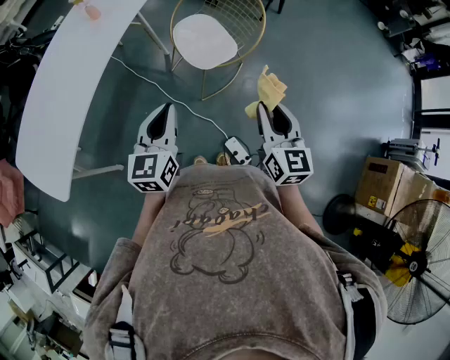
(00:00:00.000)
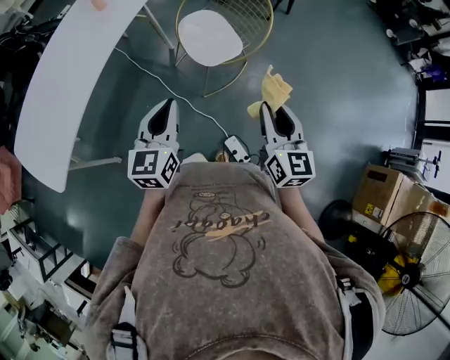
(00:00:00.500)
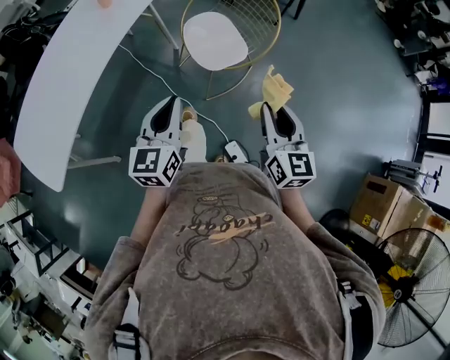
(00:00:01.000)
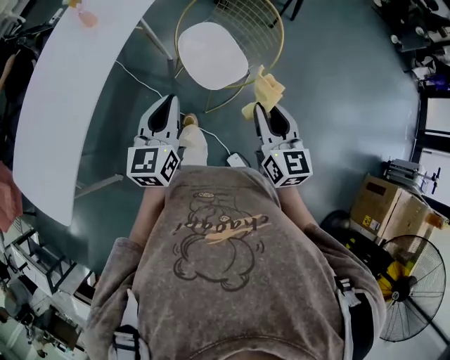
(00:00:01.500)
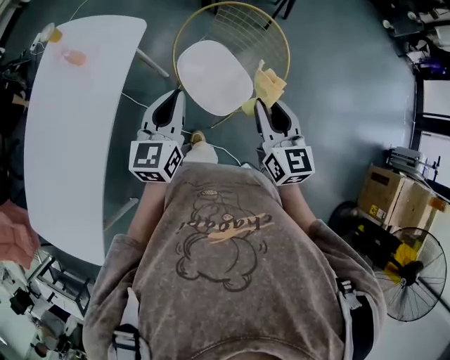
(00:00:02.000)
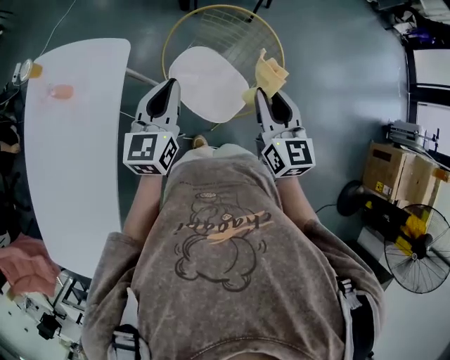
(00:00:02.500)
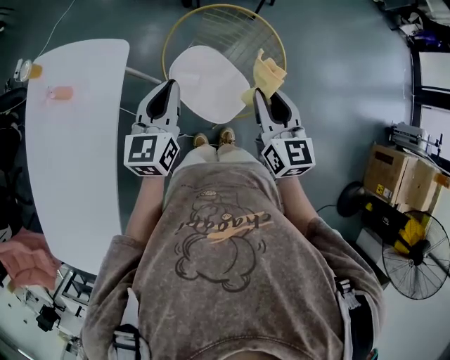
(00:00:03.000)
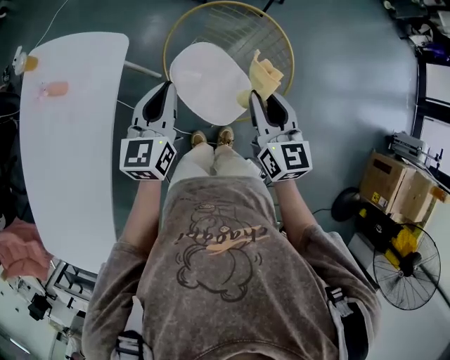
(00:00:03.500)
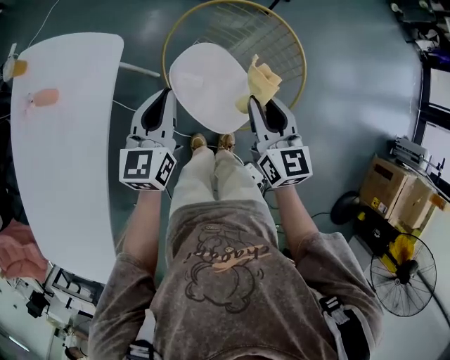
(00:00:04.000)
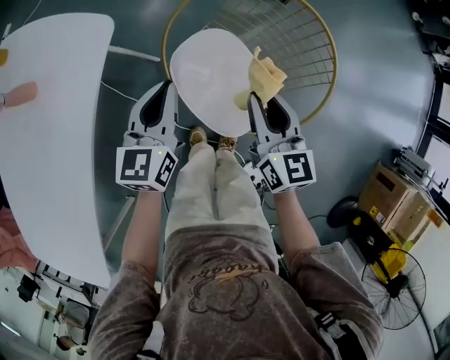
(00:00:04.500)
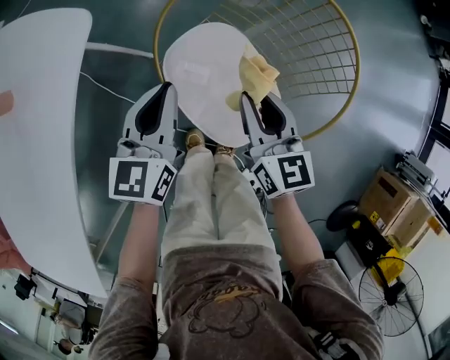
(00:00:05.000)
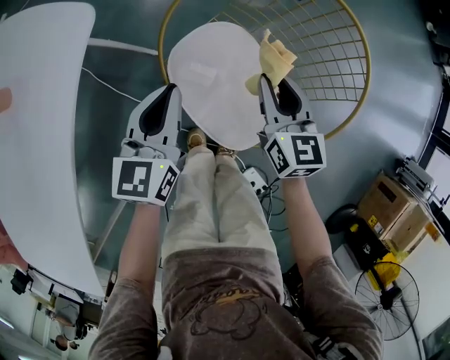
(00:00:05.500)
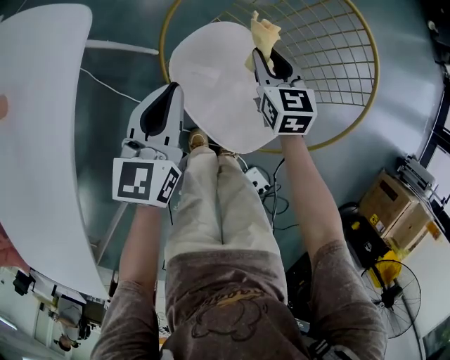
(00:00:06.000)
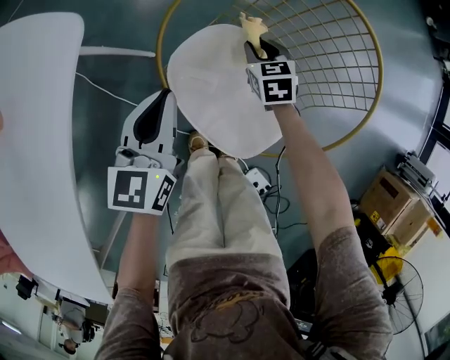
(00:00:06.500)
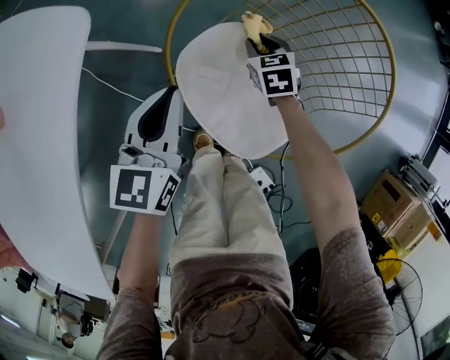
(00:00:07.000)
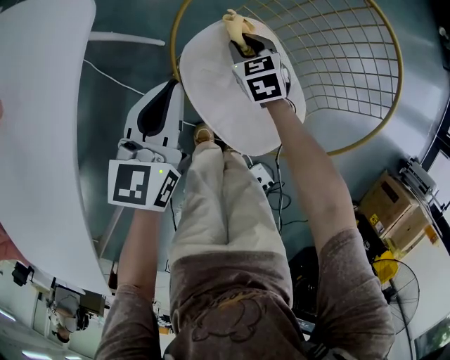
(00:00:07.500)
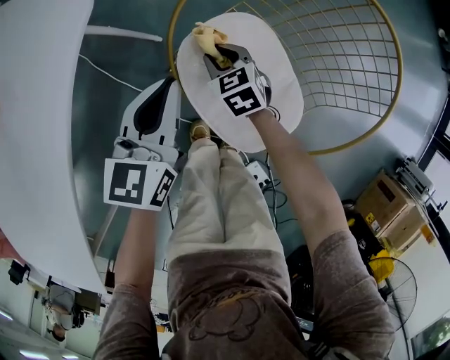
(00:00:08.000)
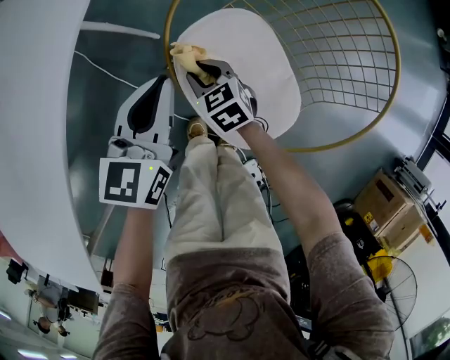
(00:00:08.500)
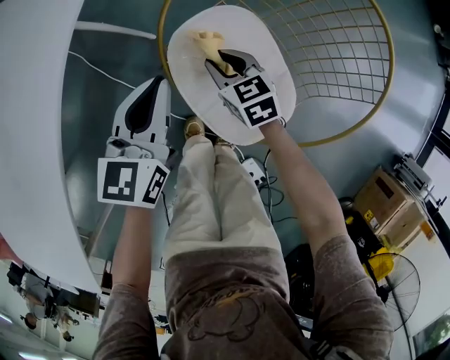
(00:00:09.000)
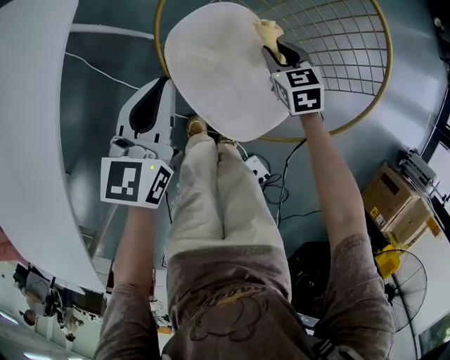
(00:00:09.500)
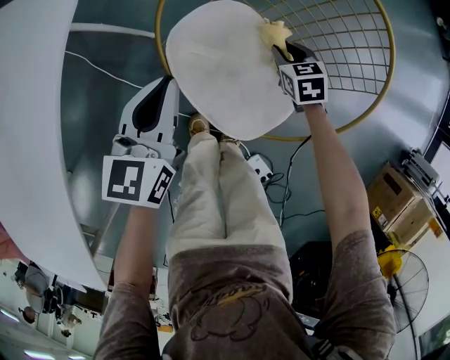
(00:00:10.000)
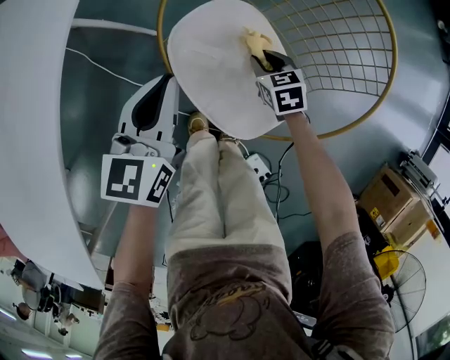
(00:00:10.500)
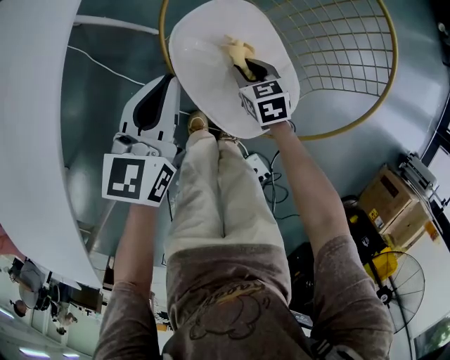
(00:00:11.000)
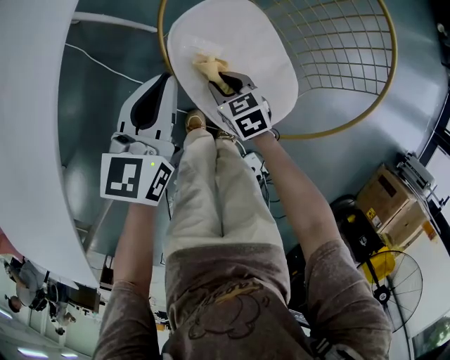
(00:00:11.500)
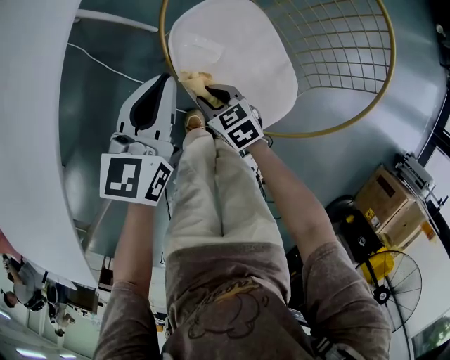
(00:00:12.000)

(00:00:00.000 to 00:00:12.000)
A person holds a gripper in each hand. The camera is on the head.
00:00:00.000 - 00:00:02.000: The grippers both shift forward by about 30 cm.
00:00:02.000 - 00:00:04.000: The grippers both shift forward and downward by about 15 cm.
00:00:04.000 - 00:00:06.000: The right gripper moves downward and forward, about 30 cm, while the left gripper goes roughly 15 cm downward.
00:00:06.000 - 00:00:08.000: The right gripper shifts some 20 cm to the left and downward, and turns by some 30 degrees.
00:00:08.000 - 00:00:10.000: The left gripper shifts by roughly 5 cm, while the right gripper shifts approximately 20 cm to the right.
00:00:10.000 - 00:00:12.000: The right gripper heads to the left and backward, covering roughly 25 cm, and swivels about 30 degrees.

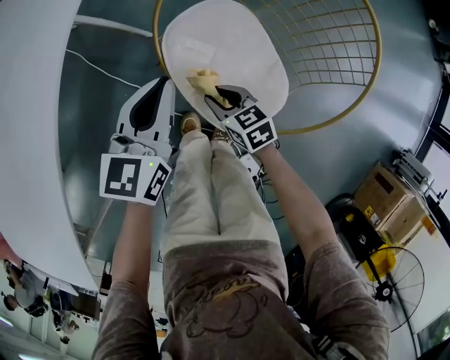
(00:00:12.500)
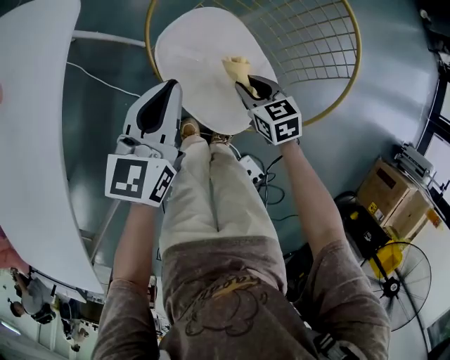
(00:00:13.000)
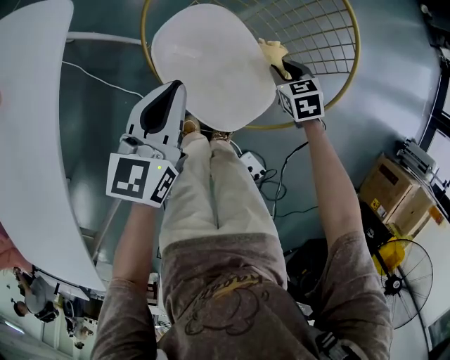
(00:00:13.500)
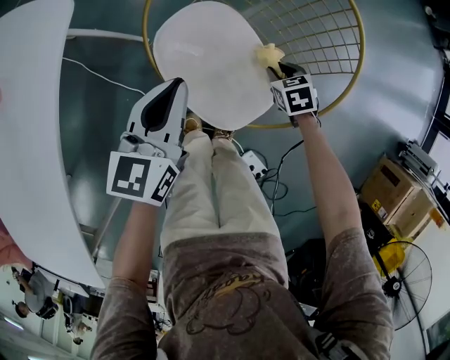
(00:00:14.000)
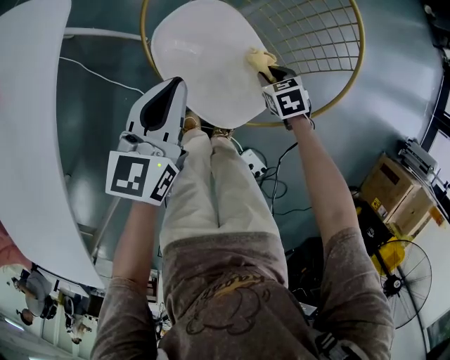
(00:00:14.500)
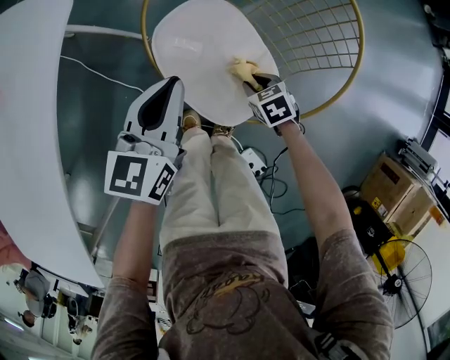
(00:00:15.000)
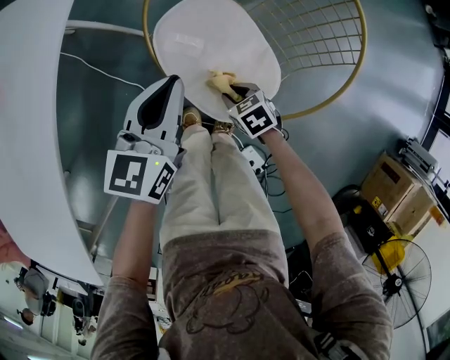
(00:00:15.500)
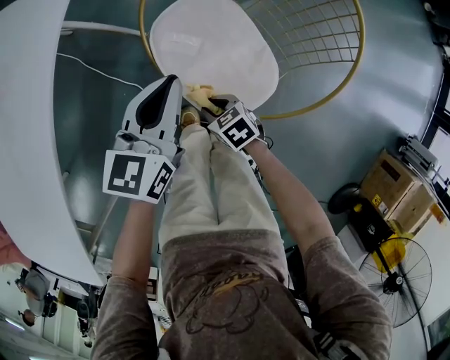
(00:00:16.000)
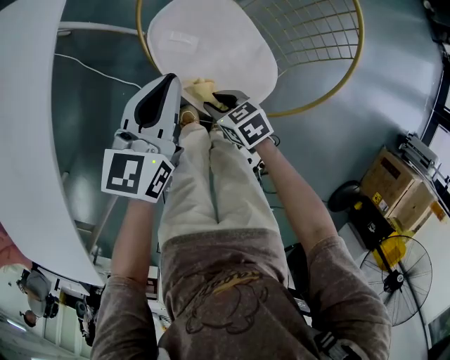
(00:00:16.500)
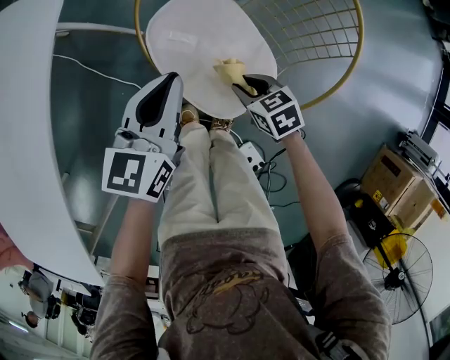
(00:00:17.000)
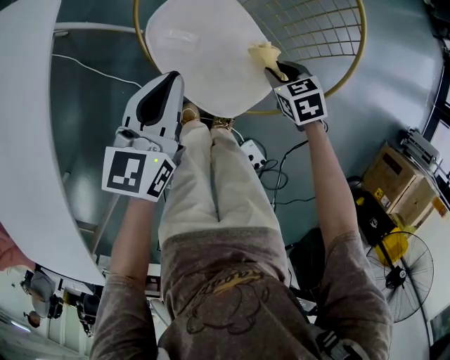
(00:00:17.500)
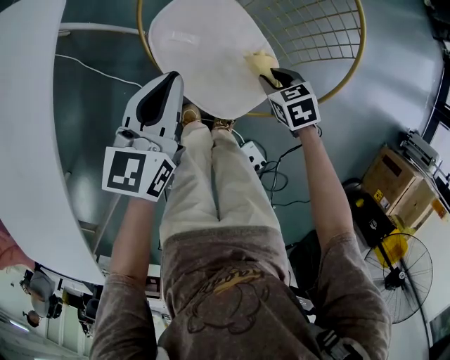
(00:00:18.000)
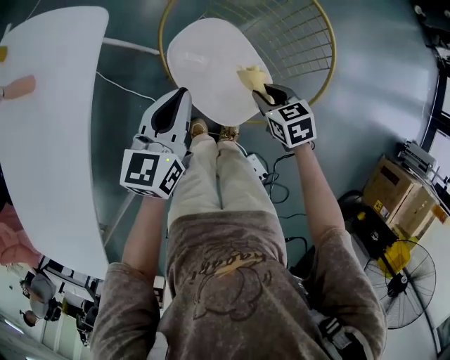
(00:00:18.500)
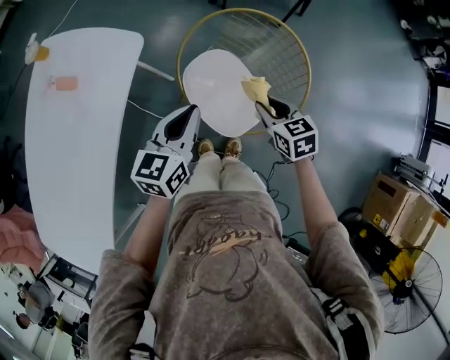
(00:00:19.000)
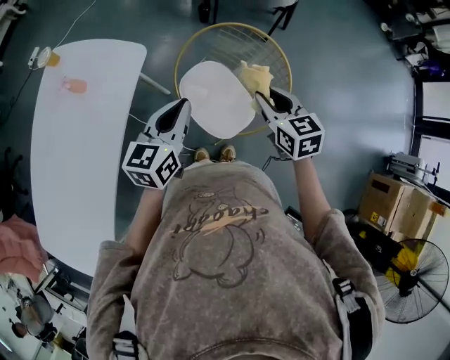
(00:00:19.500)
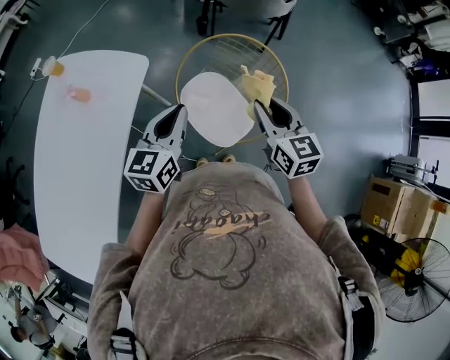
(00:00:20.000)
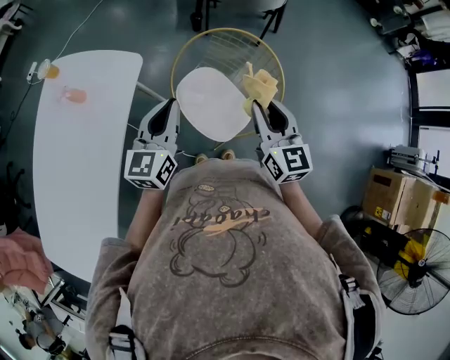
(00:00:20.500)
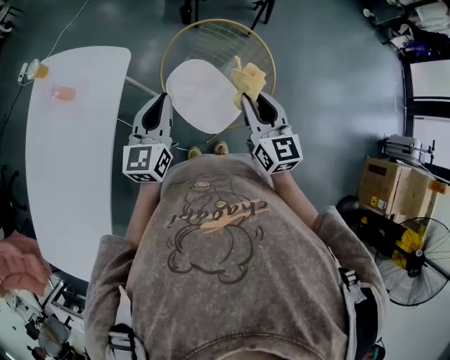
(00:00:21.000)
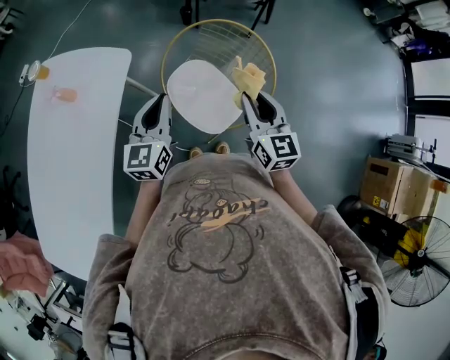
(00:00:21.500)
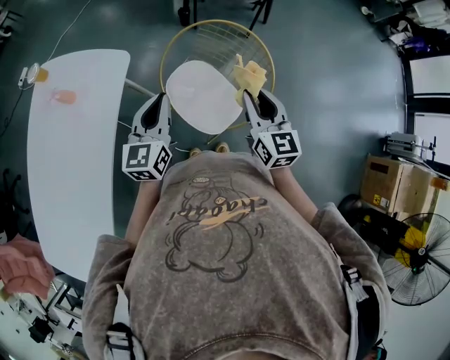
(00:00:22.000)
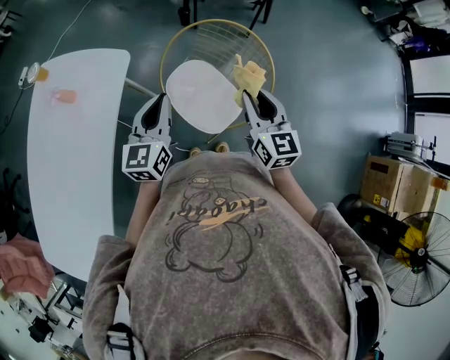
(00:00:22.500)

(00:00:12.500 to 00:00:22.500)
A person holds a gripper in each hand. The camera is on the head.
00:00:12.500 - 00:00:14.500: The right gripper goes some 20 cm to the right, and swivels approximately 30 degrees, while the left gripper shifts some 5 cm to the right.
00:00:14.500 - 00:00:16.500: The right gripper travels to the left by approximately 20 cm, and rotates some 20 degrees.
00:00:16.500 - 00:00:18.500: The left gripper heads upward, covering approximately 10 cm. The right gripper travels upward and to the right by roughly 20 cm.
00:00:18.500 - 00:00:20.500: The right gripper shifts some 35 cm upward, and tips its fingers upward by roughly 50 degrees, while the left gripper is displaced upward by approximately 20 cm.
00:00:20.500 - 00:00:22.500: There are only small adjustments of the grippers.

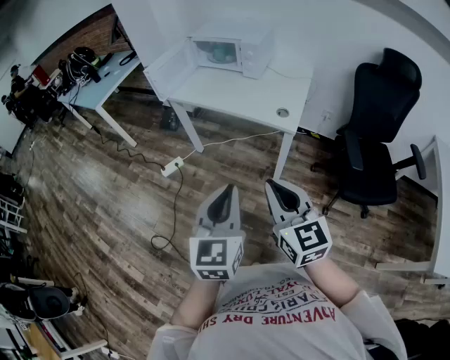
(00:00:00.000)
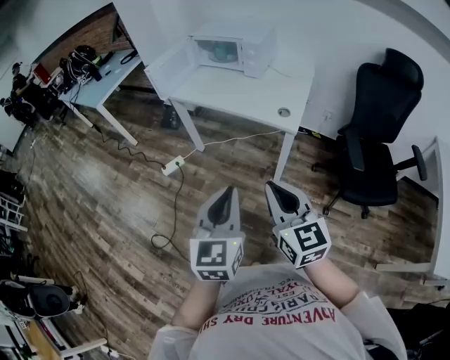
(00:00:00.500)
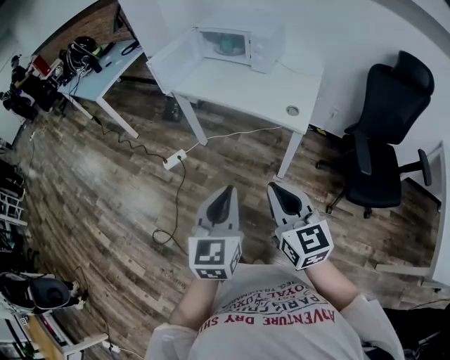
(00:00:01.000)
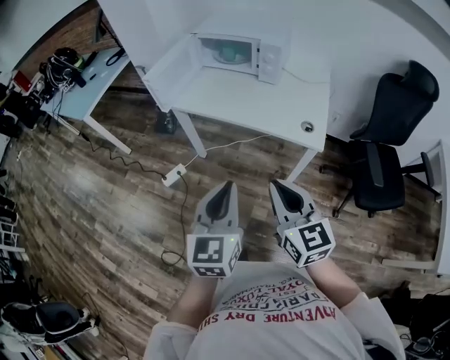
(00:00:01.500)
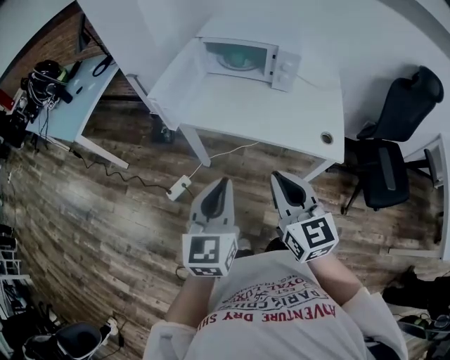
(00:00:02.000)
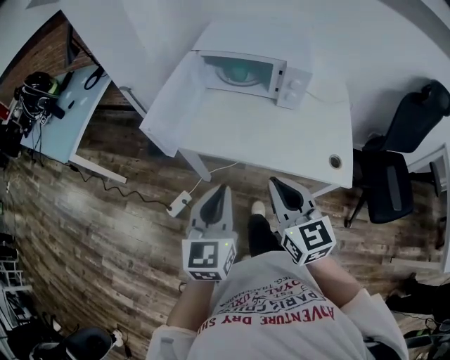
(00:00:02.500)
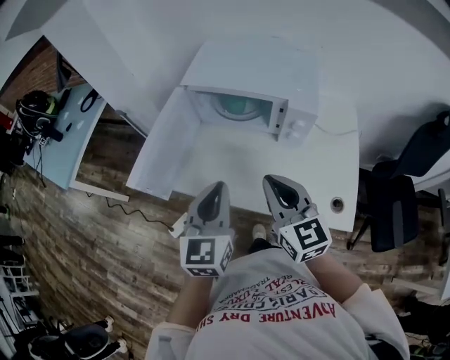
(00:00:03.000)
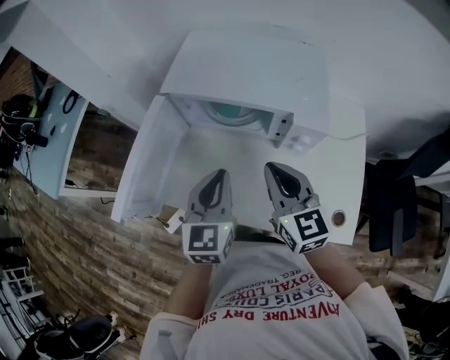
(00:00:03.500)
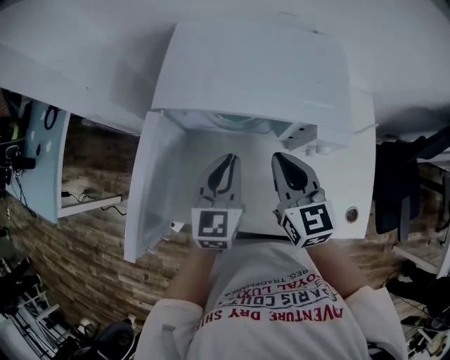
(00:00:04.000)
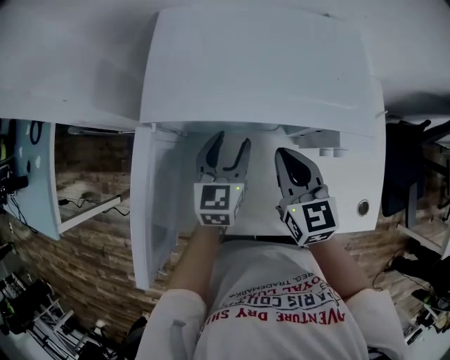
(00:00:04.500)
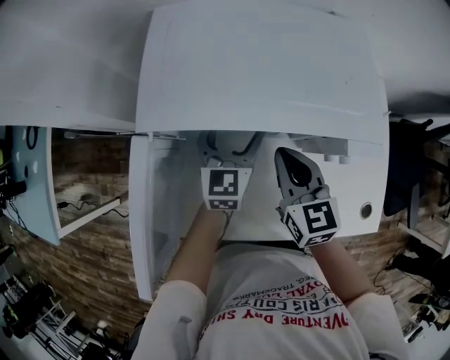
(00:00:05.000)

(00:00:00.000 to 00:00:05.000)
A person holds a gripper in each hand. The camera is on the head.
00:00:00.000 - 00:00:02.500: Both grippers are carried forward and to the left, some 50 cm.
00:00:02.500 - 00:00:05.000: The two grippers travel together, forward, approximately 50 cm. The right gripper rotates some 20 degrees. The left gripper opens up.
